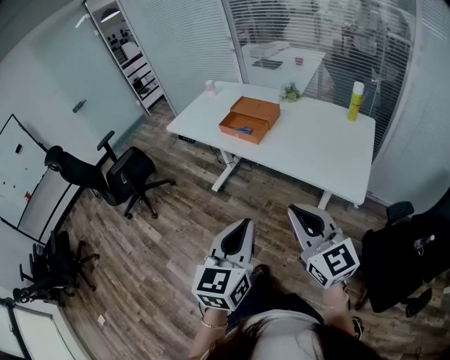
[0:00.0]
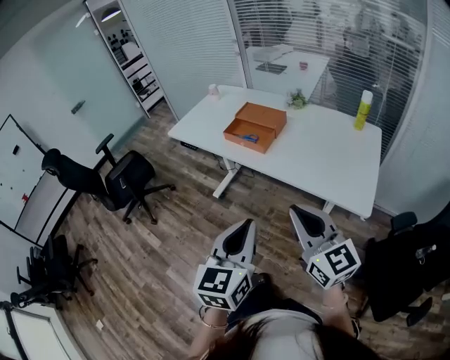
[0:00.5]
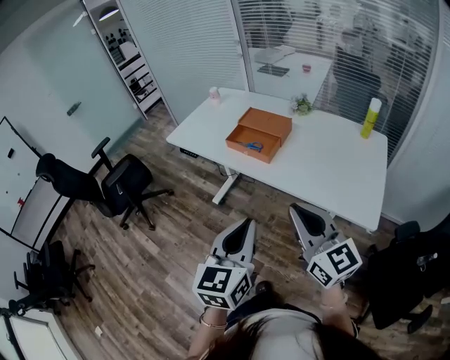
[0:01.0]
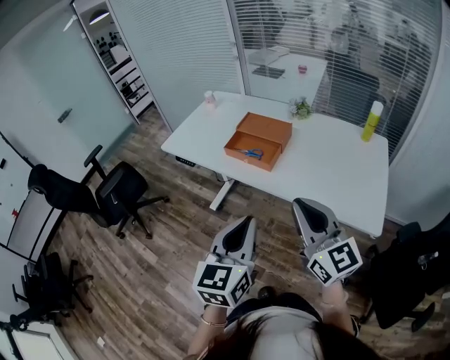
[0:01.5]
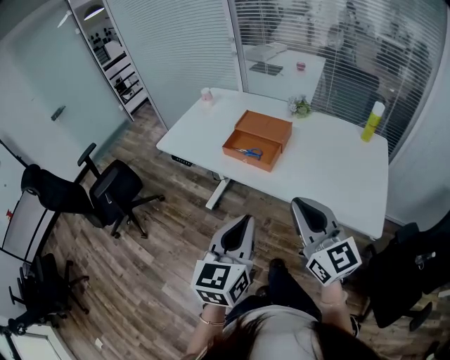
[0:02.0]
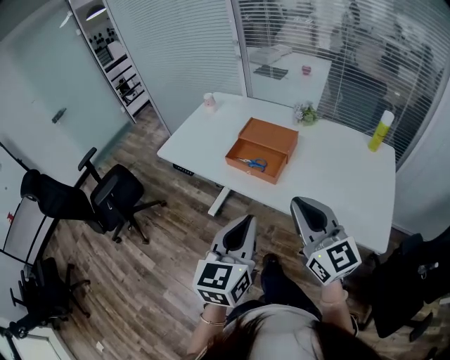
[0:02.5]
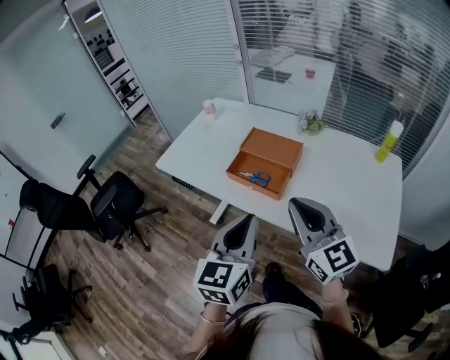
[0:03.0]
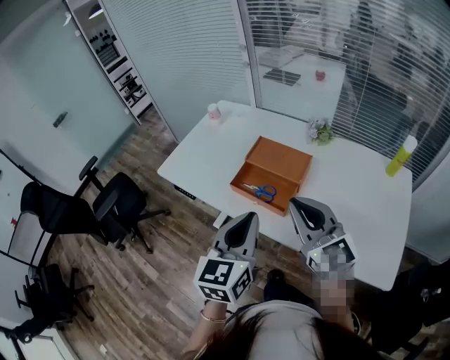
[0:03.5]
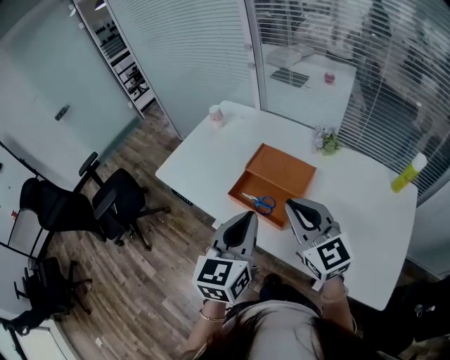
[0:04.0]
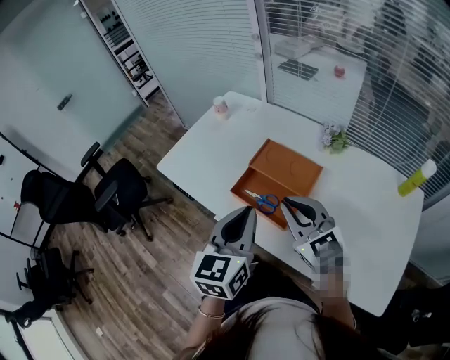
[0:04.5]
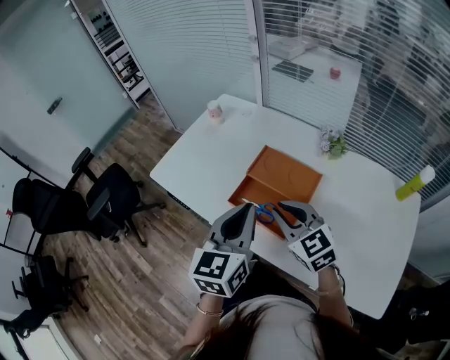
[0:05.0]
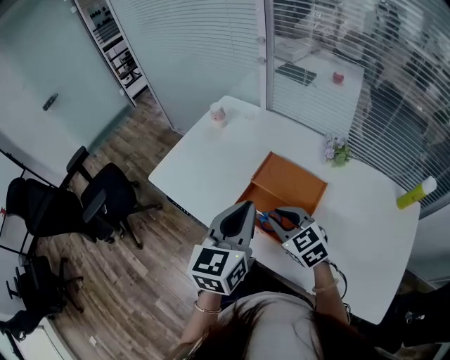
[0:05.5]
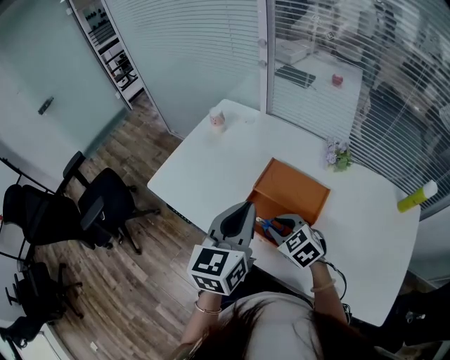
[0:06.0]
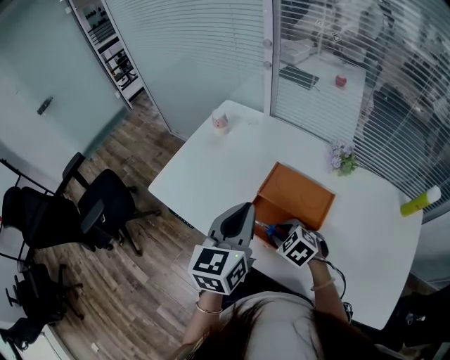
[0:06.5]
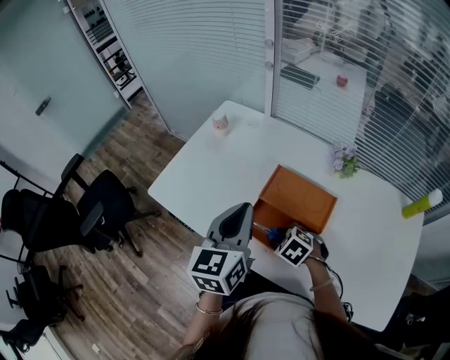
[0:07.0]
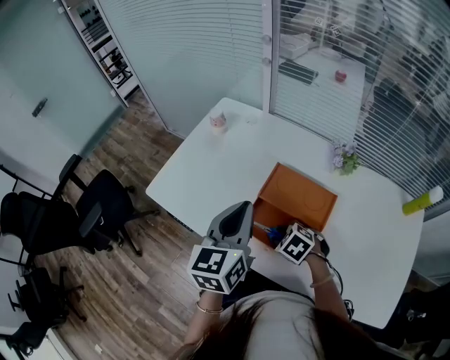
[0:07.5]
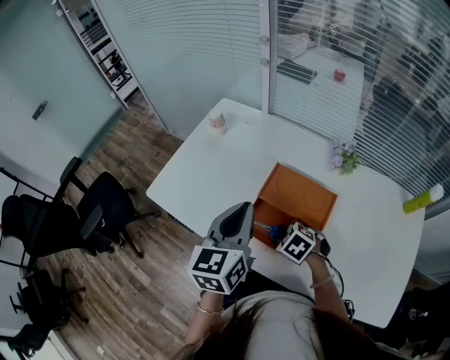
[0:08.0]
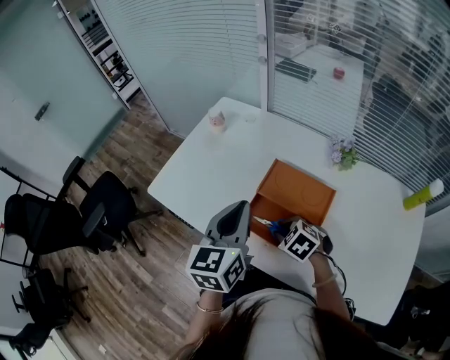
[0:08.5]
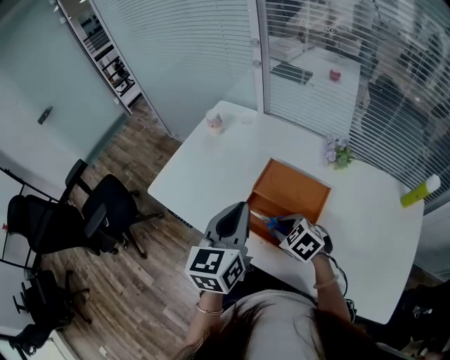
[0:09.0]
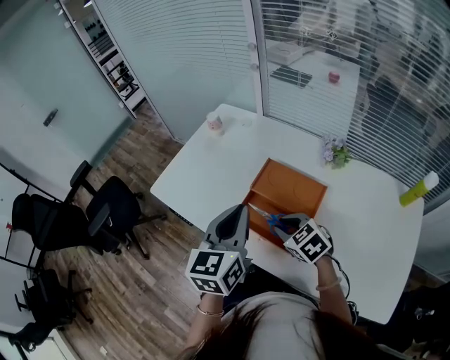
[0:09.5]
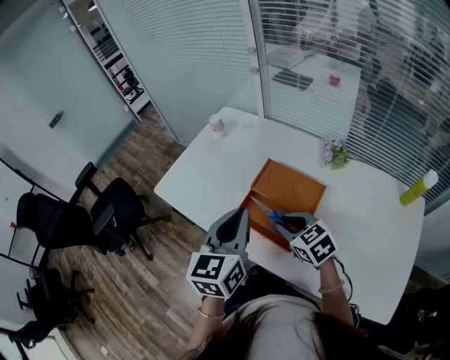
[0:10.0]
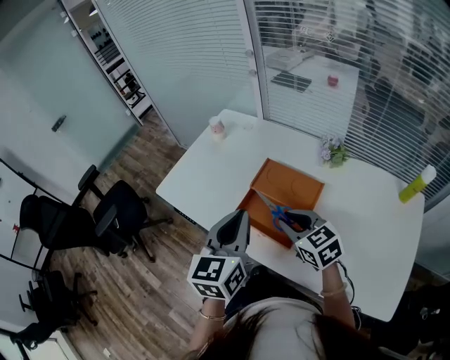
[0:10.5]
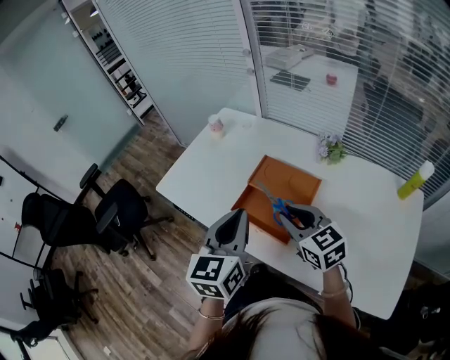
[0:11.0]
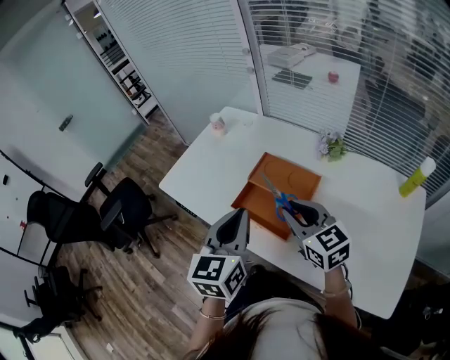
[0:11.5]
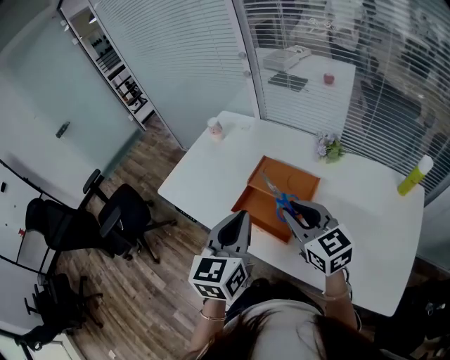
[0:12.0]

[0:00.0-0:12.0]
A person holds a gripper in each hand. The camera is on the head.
0:00.0 to 0:02.0: The two grippers go roughly 20 cm forward.
0:02.0 to 0:04.0: Both grippers travel together forward, about 25 cm.
0:04.0 to 0:06.0: The left gripper heads forward, covering approximately 15 cm; the right gripper moves downward and forward, roughly 25 cm, tips its fingers downward by roughly 40 degrees, and opens.
0:06.0 to 0:08.0: The left gripper moves approximately 5 cm, while the right gripper heads downward, covering some 10 cm, and turns by approximately 20 degrees.
0:08.0 to 0:10.0: The right gripper is displaced upward by approximately 10 cm, and turns by some 30 degrees. The left gripper shifts roughly 10 cm backward.
0:10.0 to 0:12.0: The left gripper ends up approximately 5 cm from where it was. The right gripper travels upward by approximately 10 cm, and swivels about 30 degrees.

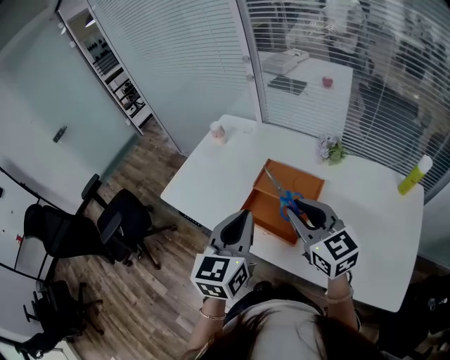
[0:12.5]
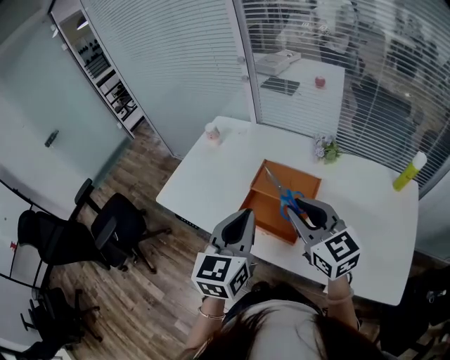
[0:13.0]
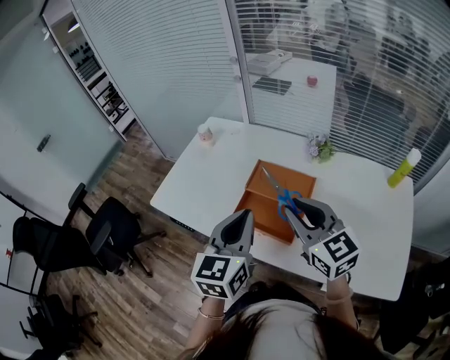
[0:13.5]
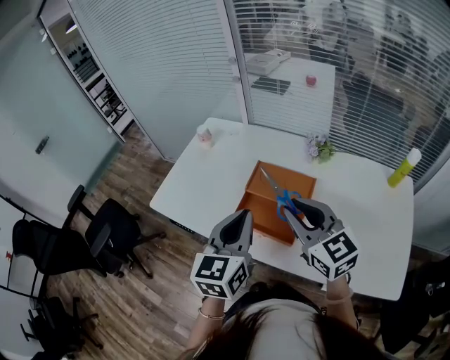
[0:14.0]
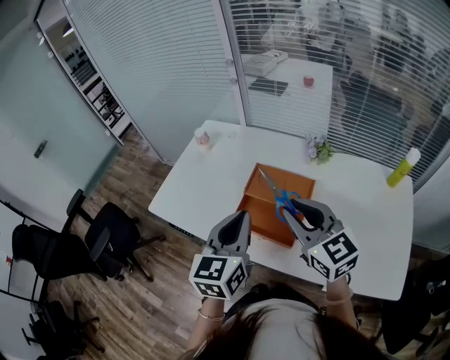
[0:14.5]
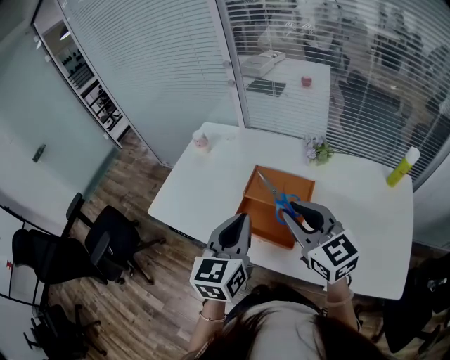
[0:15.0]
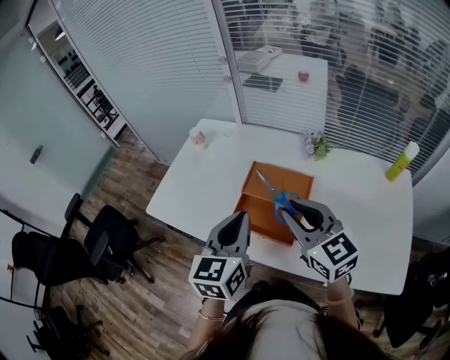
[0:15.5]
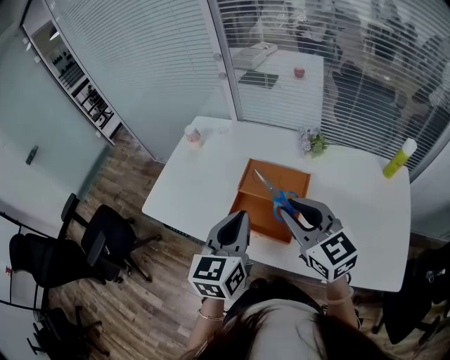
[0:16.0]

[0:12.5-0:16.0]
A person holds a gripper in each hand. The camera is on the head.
0:12.5 to 0:16.0: The grippers stay close to where they were, moving slightly.

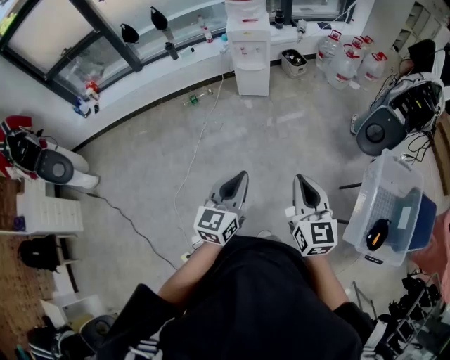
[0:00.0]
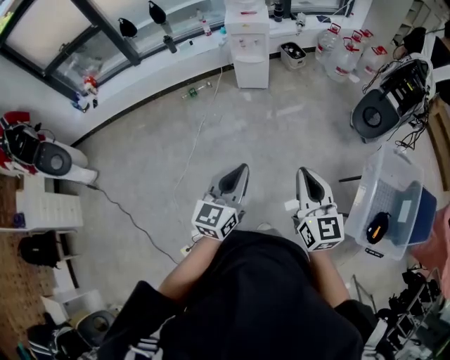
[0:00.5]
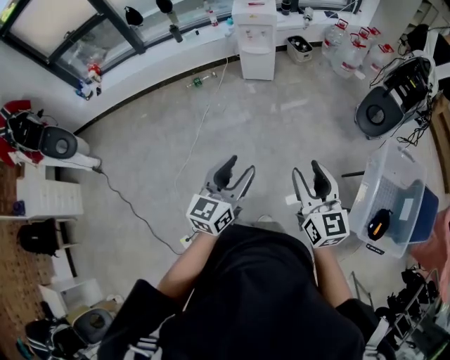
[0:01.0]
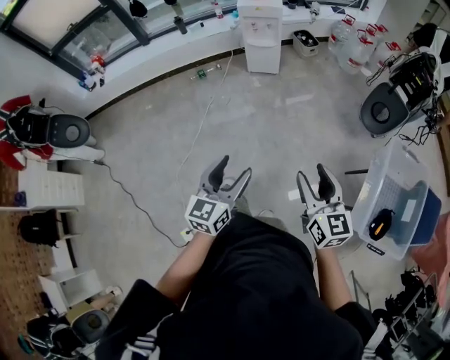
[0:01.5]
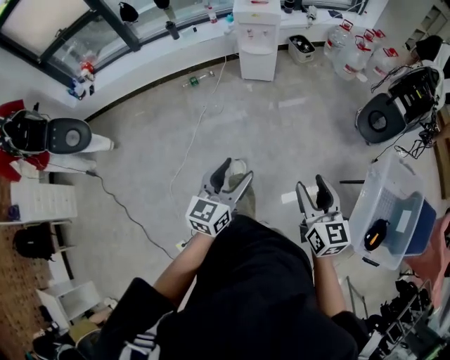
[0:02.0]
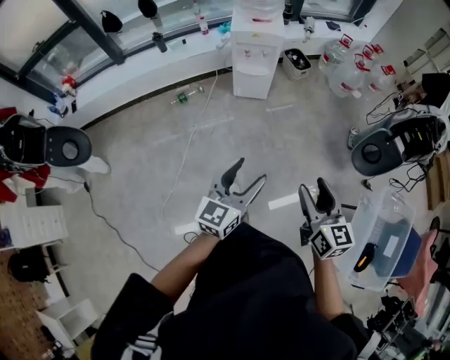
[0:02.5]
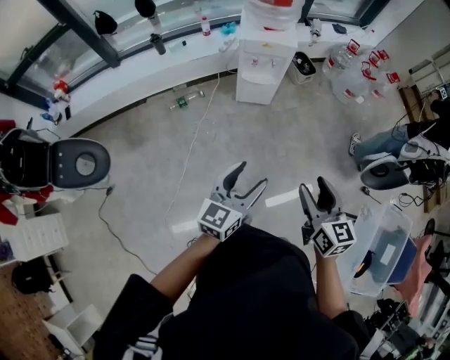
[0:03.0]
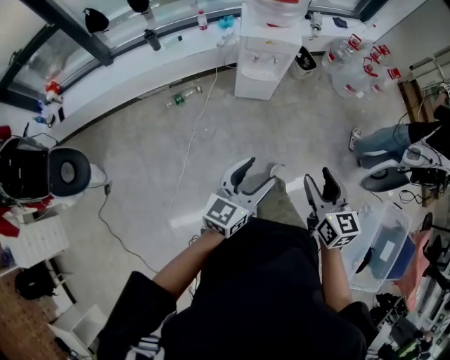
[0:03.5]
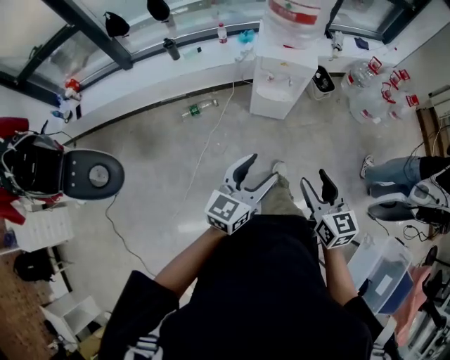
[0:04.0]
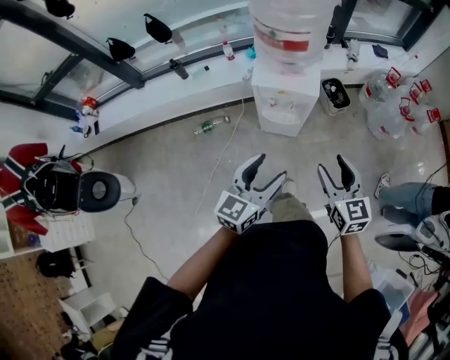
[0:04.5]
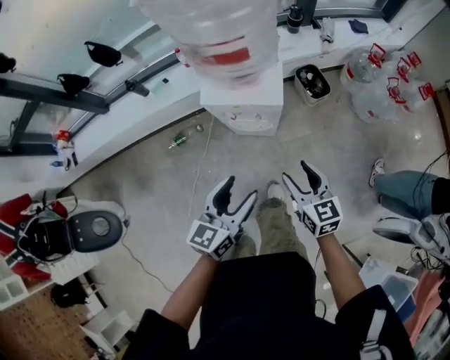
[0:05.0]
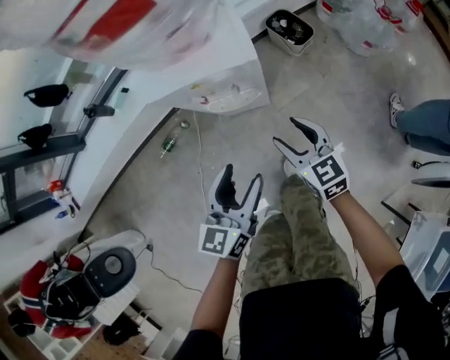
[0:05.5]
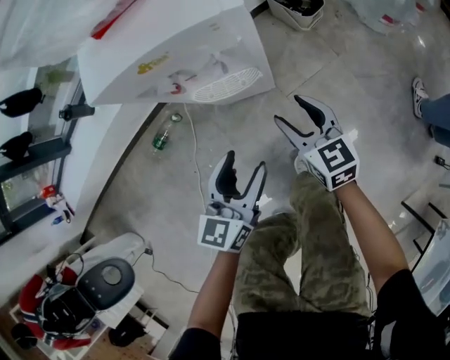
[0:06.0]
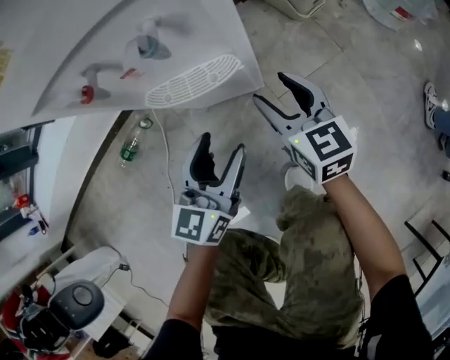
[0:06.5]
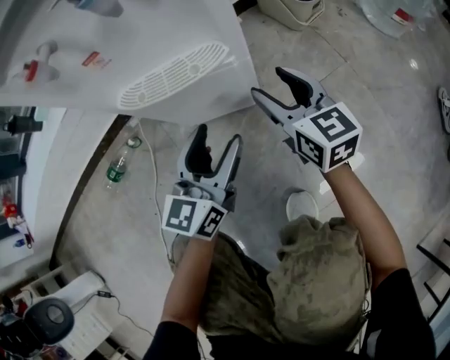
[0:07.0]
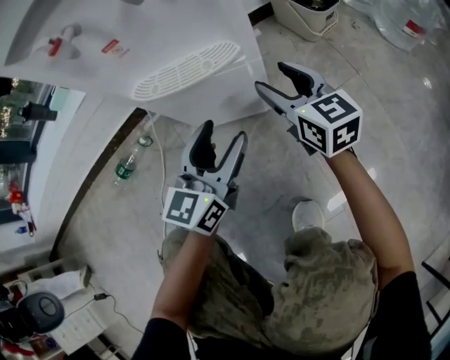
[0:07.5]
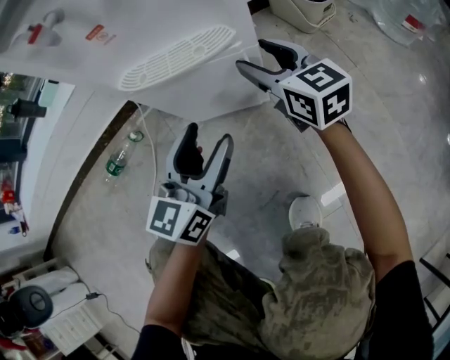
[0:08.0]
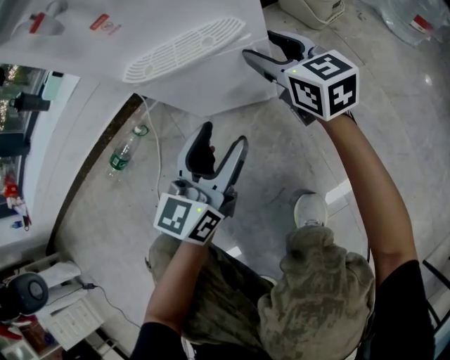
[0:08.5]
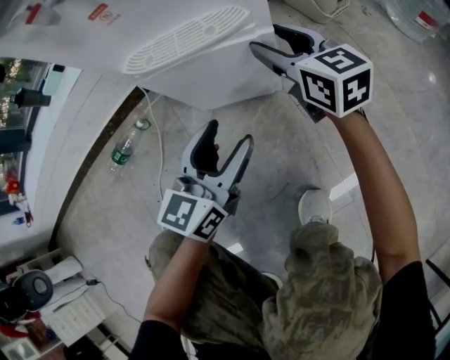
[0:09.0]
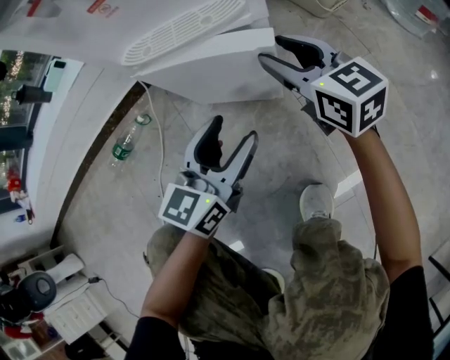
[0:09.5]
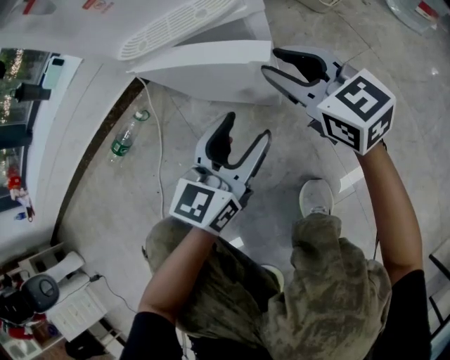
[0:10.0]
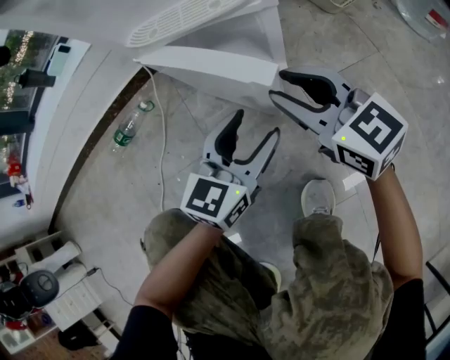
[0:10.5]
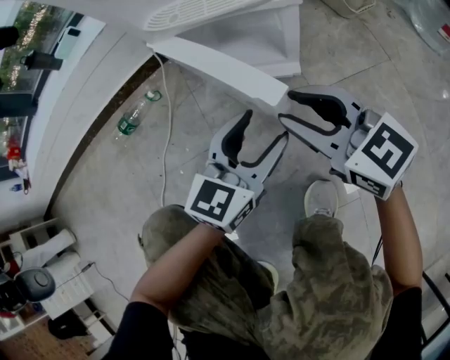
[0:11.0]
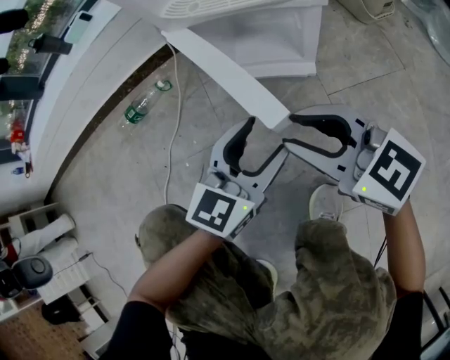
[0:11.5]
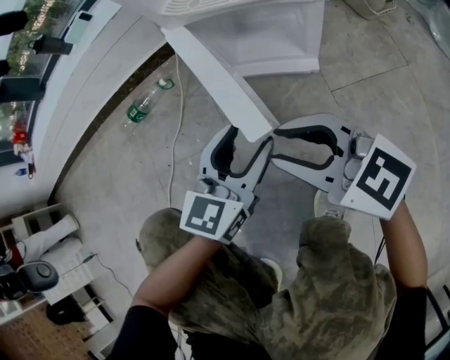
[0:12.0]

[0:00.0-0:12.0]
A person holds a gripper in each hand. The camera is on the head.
0:00.0 to 0:02.0: The right gripper shifts approximately 5 cm downward, and opens up, while the left gripper changes place by approximately 5 cm, and opens its fingers.
0:02.0 to 0:04.0: The pair of grippers is taken forward, about 50 cm.
0:04.0 to 0:06.0: Both grippers travel together downward and forward, about 60 cm.
0:06.0 to 0:08.0: The right gripper shifts some 25 cm downward and forward. Meanwhile the left gripper heads downward, covering about 25 cm.
0:08.0 to 0:10.0: The left gripper heads downward, covering some 5 cm; the right gripper moves backward, about 10 cm, and closes up.
0:10.0 to 0:12.0: The left gripper goes about 10 cm to the left. The right gripper is displaced to the left and backward by some 20 cm, and rotates approximately 30 degrees.
